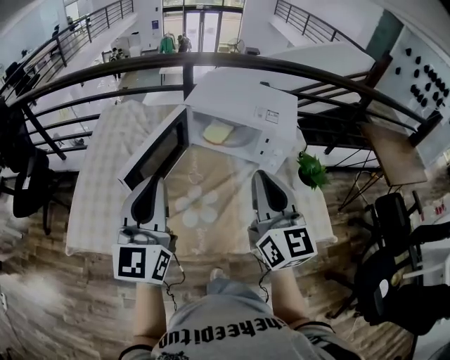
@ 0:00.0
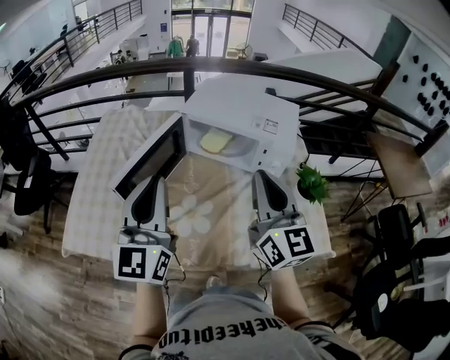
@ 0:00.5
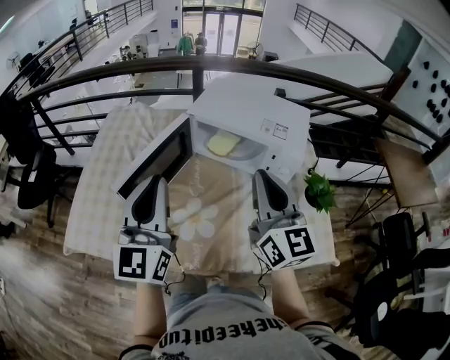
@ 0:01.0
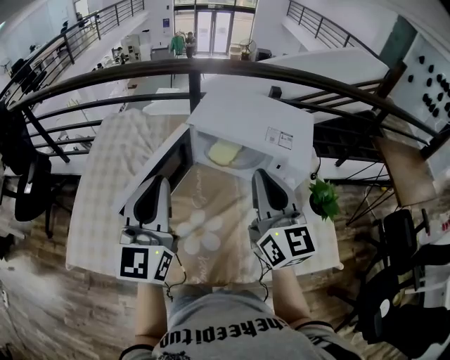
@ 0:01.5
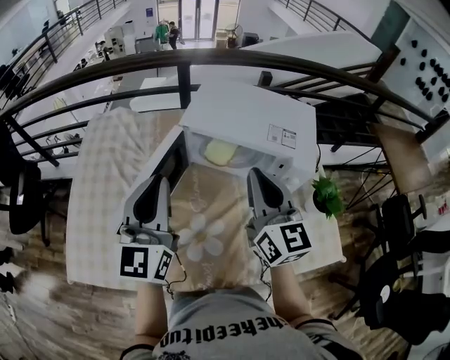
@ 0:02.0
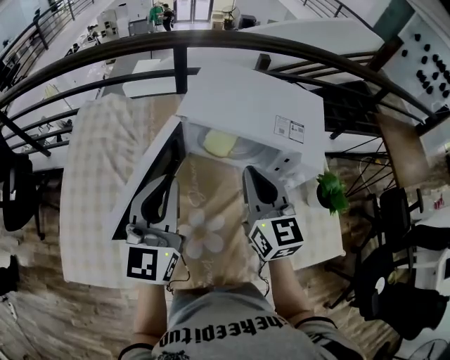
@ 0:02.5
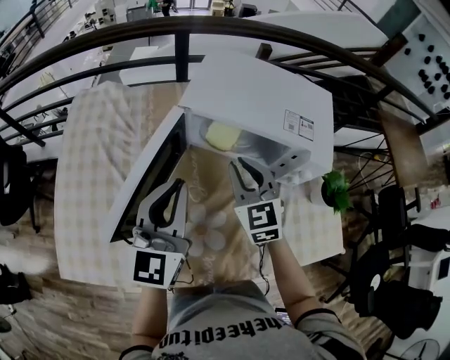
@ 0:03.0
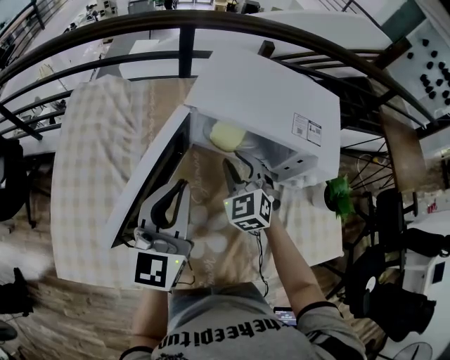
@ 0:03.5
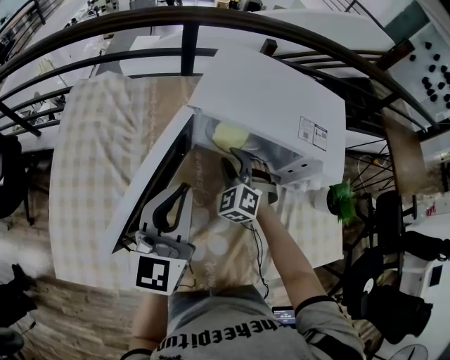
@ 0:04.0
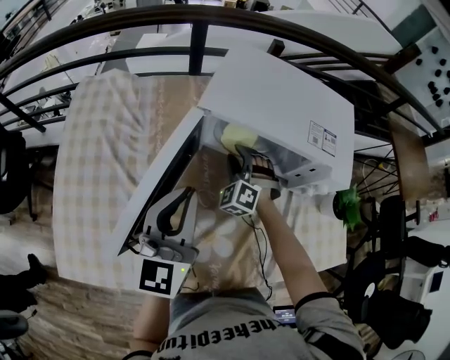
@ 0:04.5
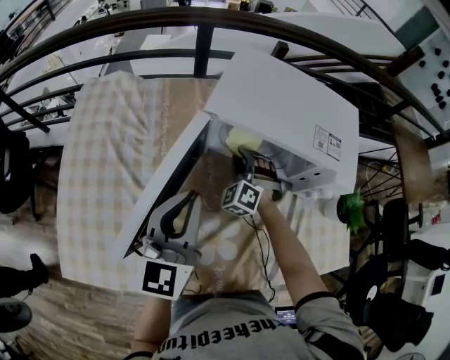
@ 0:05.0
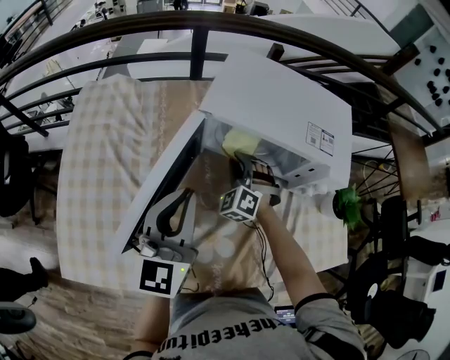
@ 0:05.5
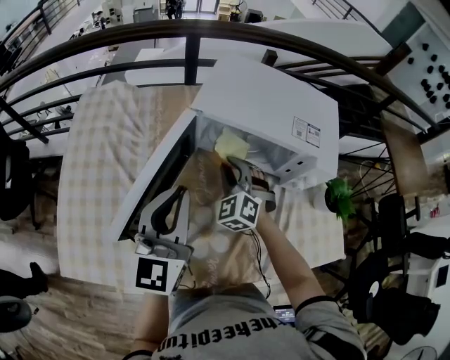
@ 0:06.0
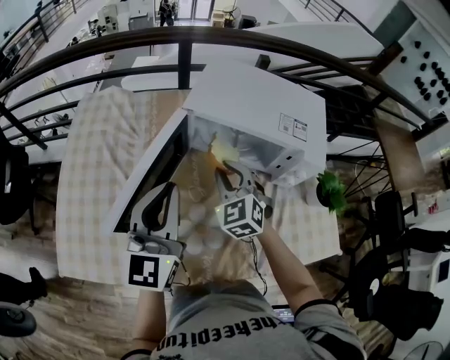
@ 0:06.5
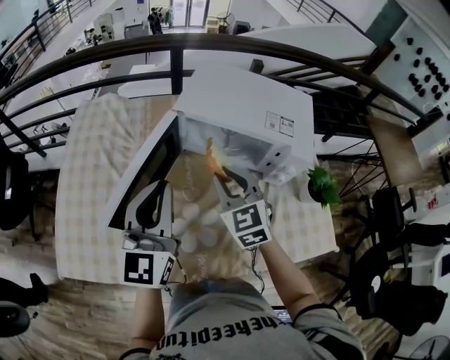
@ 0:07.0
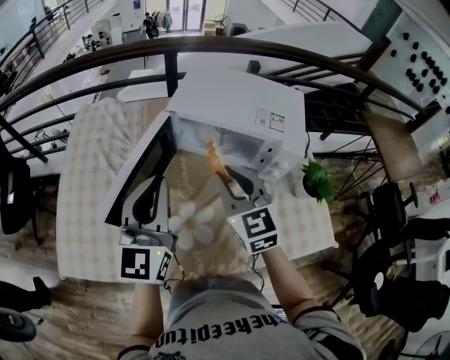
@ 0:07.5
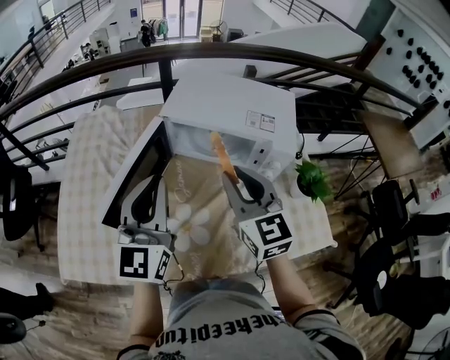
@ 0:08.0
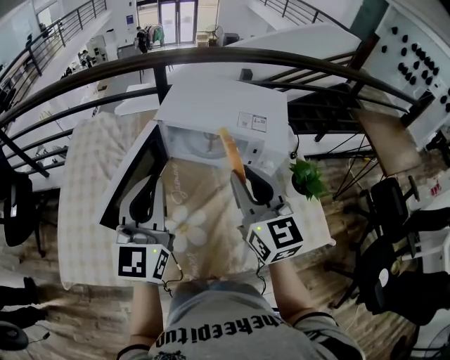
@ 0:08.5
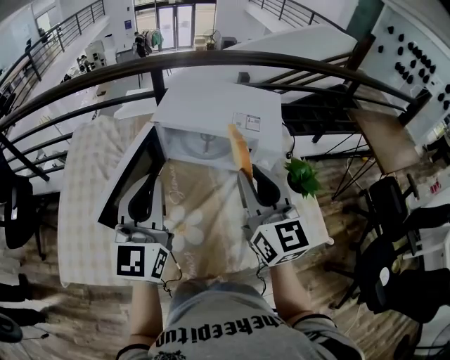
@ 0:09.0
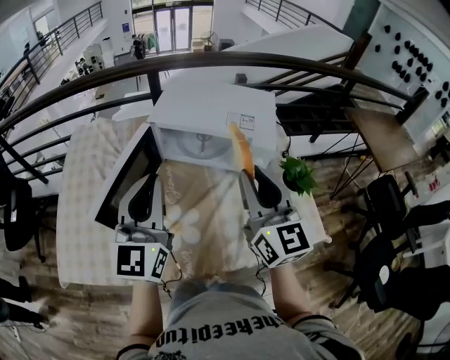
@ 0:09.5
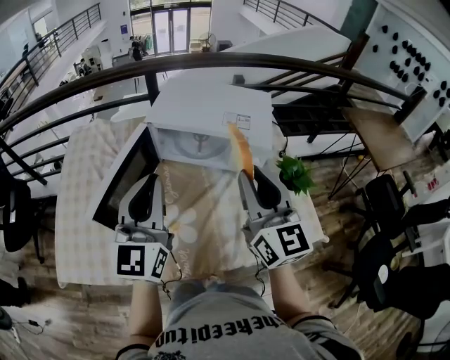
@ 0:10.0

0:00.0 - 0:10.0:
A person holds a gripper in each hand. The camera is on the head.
0:00.0 - 0:02.0: Both grippers move forward, approximately 15 cm.
0:02.0 - 0:04.0: The right gripper goes about 30 cm downward and forward, rolls counterclockwise, seen from behind, by approximately 60 degrees, and opens its fingers. The left gripper heads downward, covering roughly 10 cm.
0:04.0 - 0:06.0: The right gripper changes place by roughly 5 cm.
0:06.0 - 0:08.0: The left gripper shifts approximately 10 cm upward; the right gripper goes some 25 cm upward, backward and to the right, and twists some 40 degrees clockwise, seen from behind.
0:08.0 - 0:10.0: The left gripper moves approximately 5 cm, while the right gripper shifts about 10 cm to the right, backward and upward.

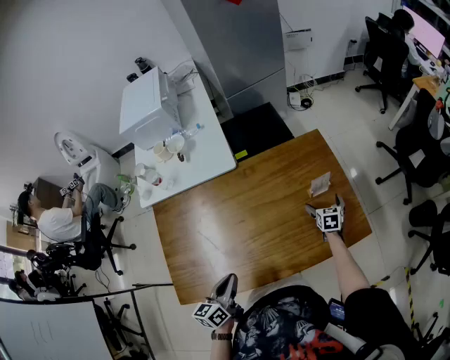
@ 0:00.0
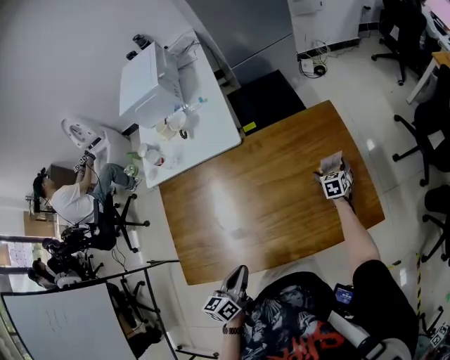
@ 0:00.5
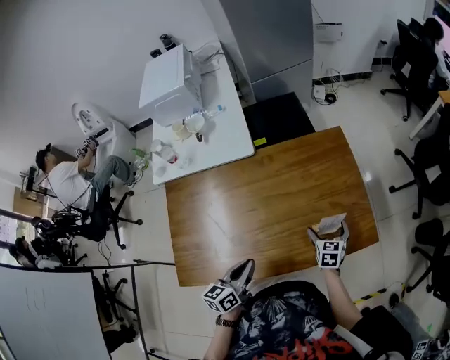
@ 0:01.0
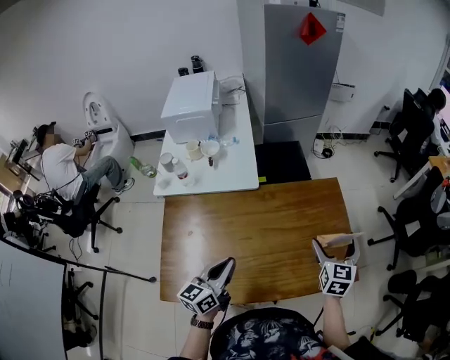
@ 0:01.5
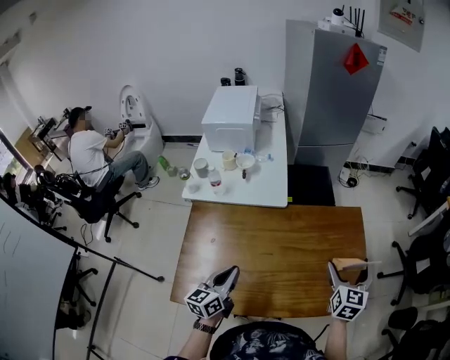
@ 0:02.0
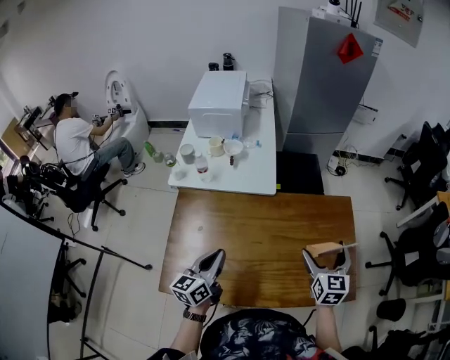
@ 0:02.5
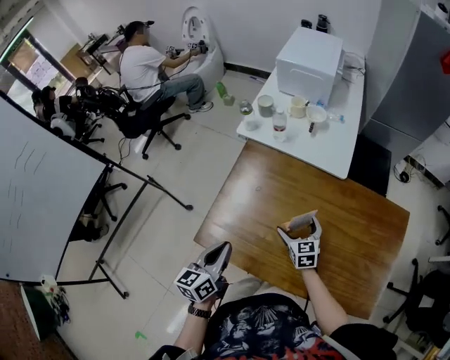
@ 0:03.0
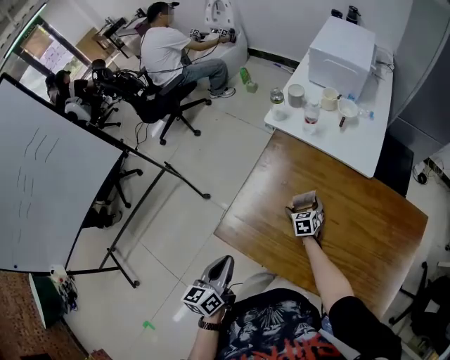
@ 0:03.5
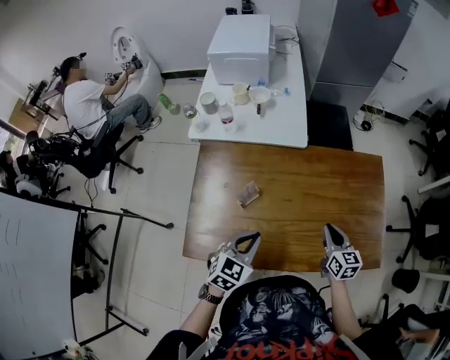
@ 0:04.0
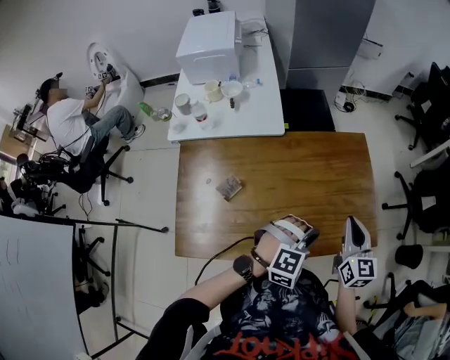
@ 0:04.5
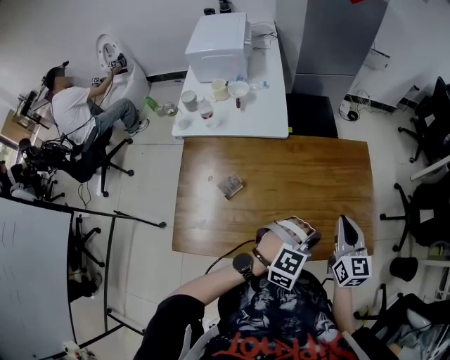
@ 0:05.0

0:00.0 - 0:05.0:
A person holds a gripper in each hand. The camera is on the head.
0:00.0 - 0:02.5: The right gripper is displaced upward and to the left by some 35 cm, and rotates approximately 30 degrees, while the left gripper is displaced to the left, forward and upward by approximately 15 cm, and rotates some 20 degrees.
0:02.5 - 0:05.0: The right gripper moves some 35 cm downward and comes back, and closes; the left gripper ends up roughly 30 cm from where it was, and twists some 90 degrees clockwise, seen from behind.

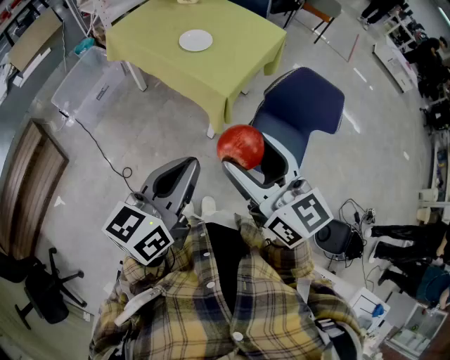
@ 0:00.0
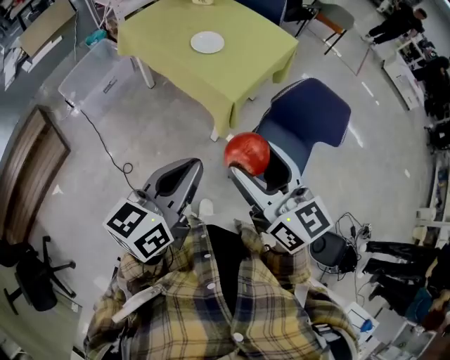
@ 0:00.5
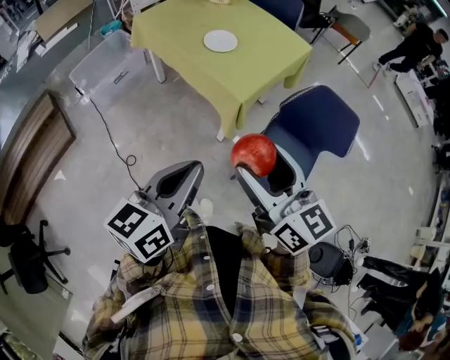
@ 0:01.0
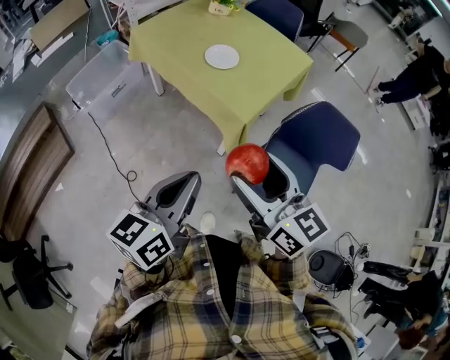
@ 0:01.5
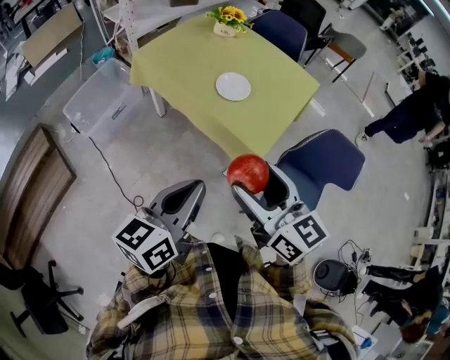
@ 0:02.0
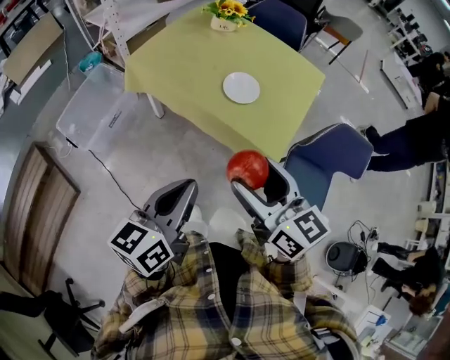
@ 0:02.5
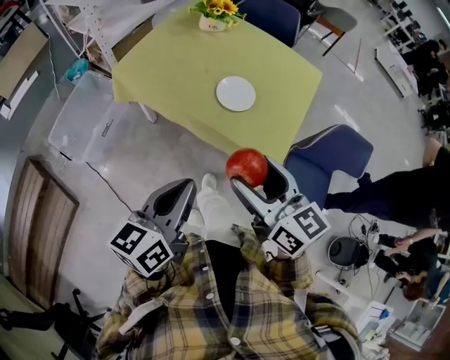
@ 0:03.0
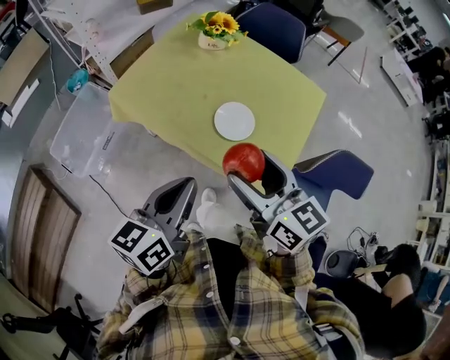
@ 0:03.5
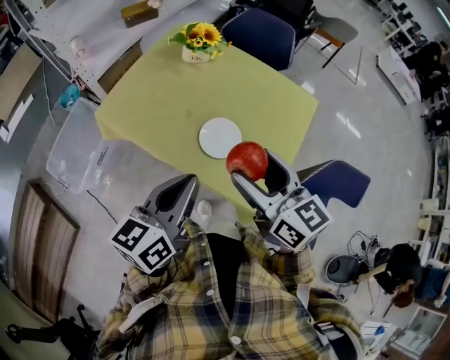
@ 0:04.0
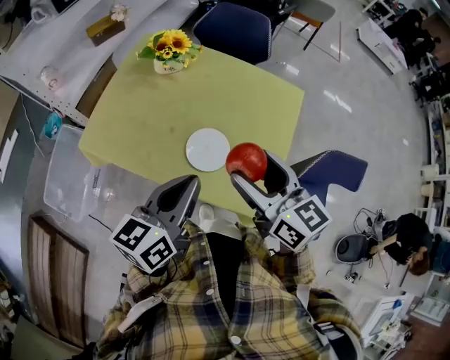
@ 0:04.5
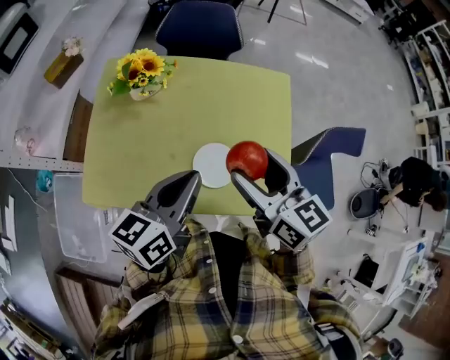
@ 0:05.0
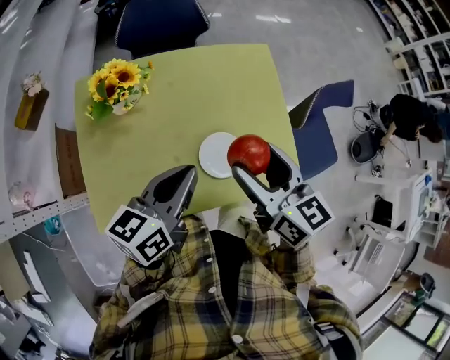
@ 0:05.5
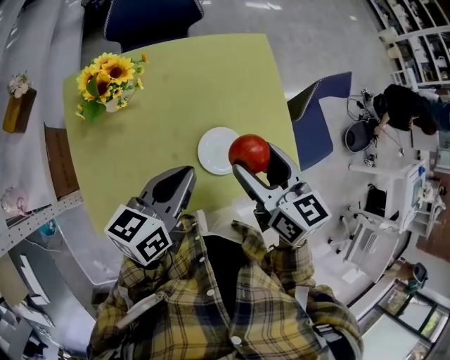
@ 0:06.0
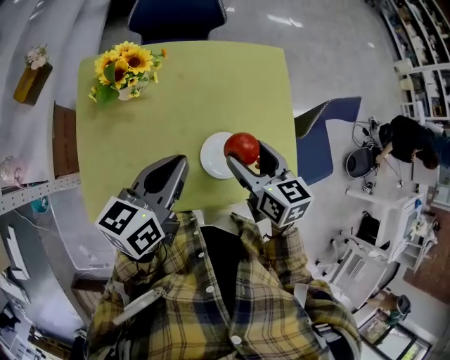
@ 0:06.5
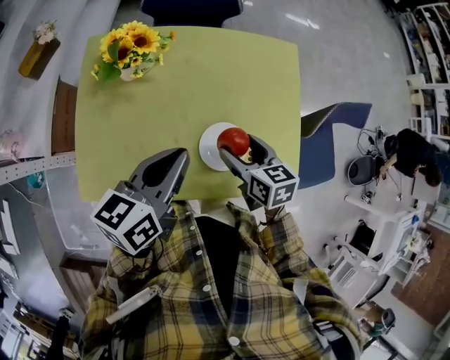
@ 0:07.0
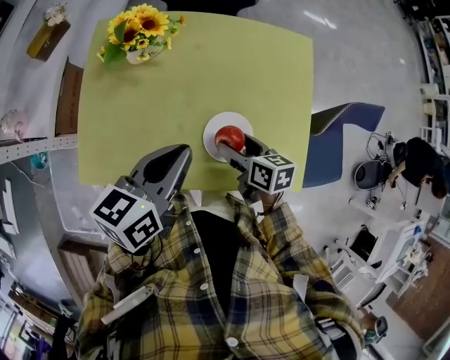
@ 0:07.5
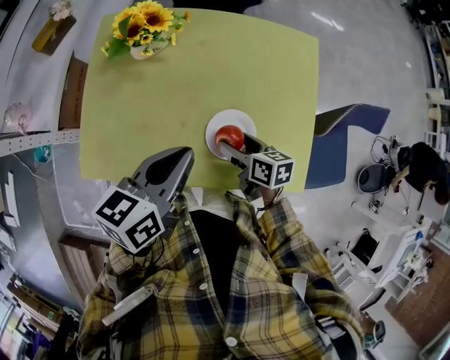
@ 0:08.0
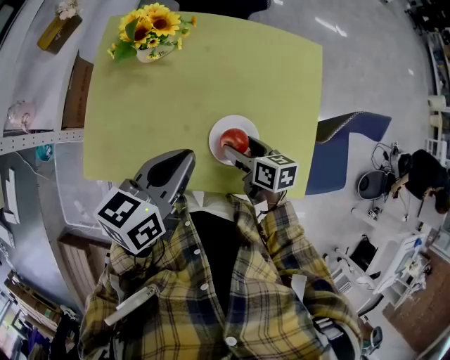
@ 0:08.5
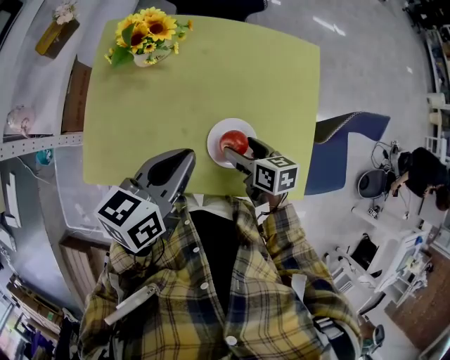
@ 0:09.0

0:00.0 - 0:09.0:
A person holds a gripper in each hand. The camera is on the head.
0:00.0 - 0:02.0: Both grippers travel together forward and to the left, about 20 cm.
0:02.0 - 0:04.5: The grippers both shift forward by some 35 cm.
0:04.5 - 0:07.0: The left gripper moves about 20 cm, and rotates roughly 30 degrees, while the right gripper goes approximately 20 cm downward, and turns by about 40 degrees.
0:07.0 - 0:09.0: The right gripper heads downward, covering about 5 cm.

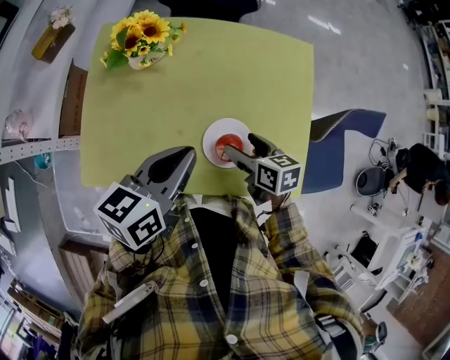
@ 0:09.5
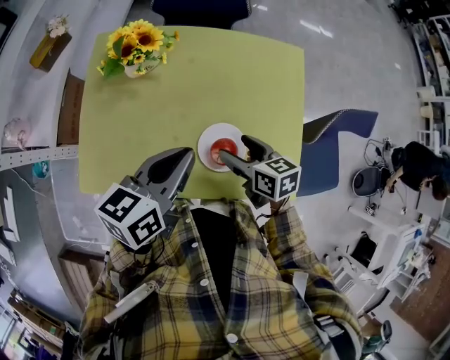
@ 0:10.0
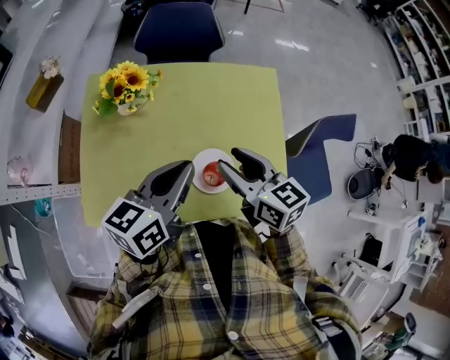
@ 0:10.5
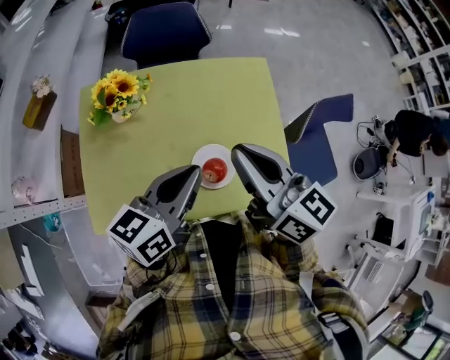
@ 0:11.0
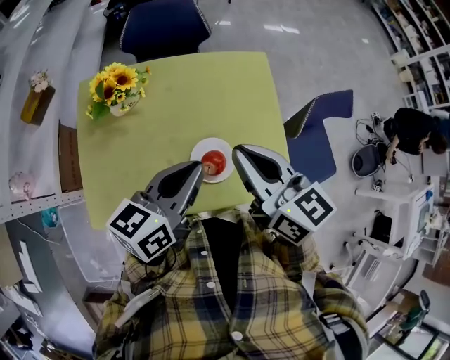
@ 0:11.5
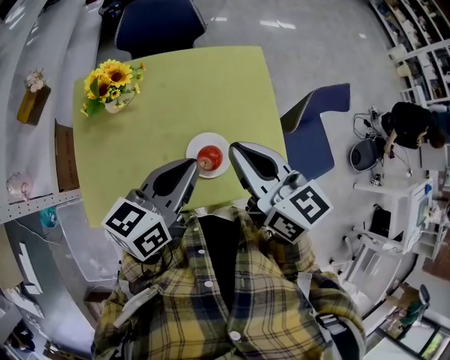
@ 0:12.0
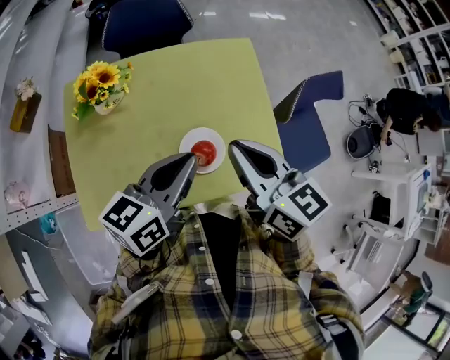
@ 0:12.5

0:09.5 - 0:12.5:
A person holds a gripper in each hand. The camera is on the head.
0:09.5 - 0:11.0: The right gripper goes some 30 cm upward, angles its fingers upward, by some 40 degrees, and closes its fingers; the left gripper goes approximately 5 cm upward.
0:11.0 - 0:12.5: The right gripper ends up about 5 cm from where it was.
